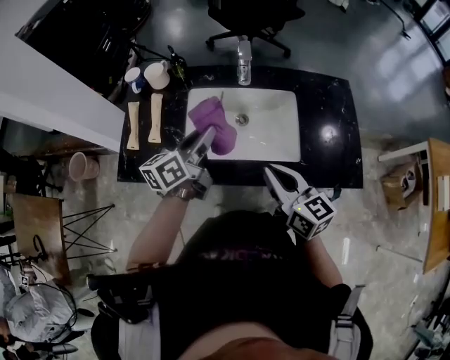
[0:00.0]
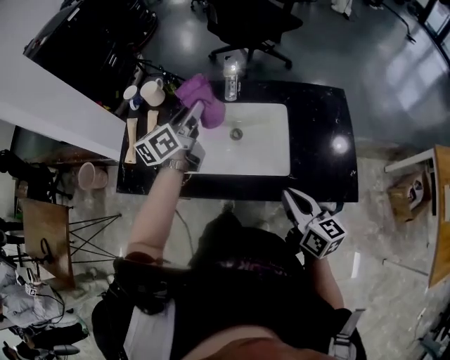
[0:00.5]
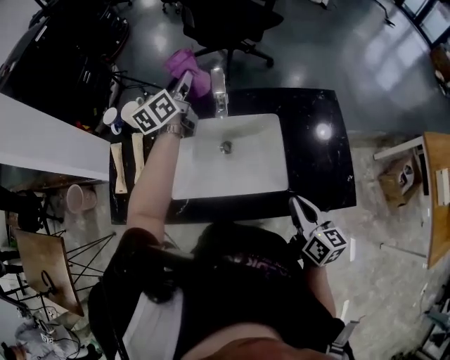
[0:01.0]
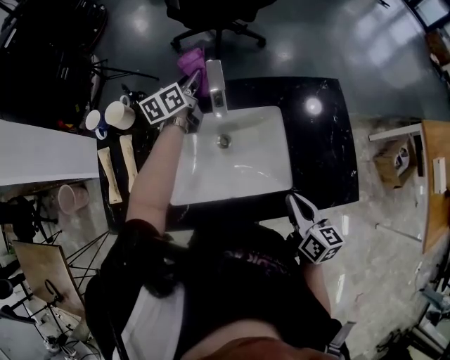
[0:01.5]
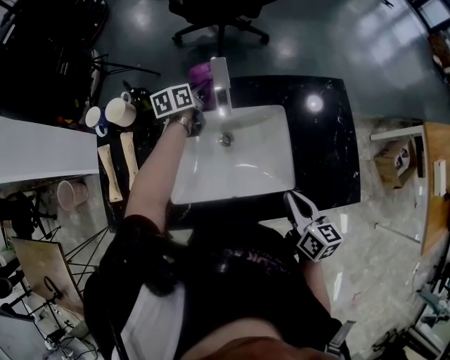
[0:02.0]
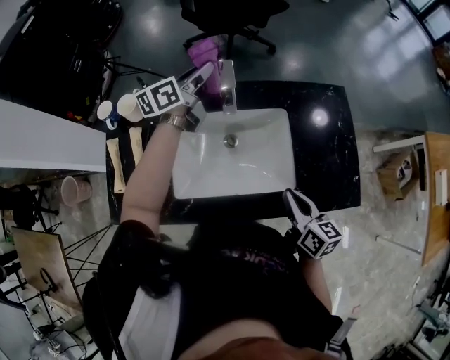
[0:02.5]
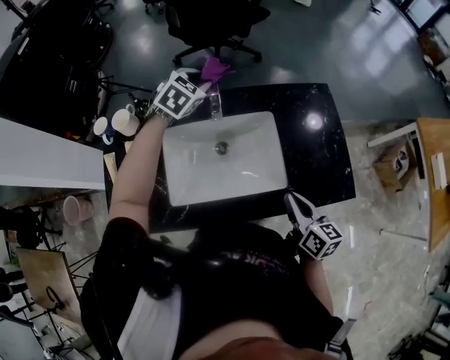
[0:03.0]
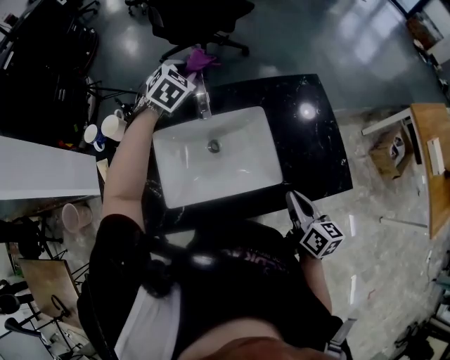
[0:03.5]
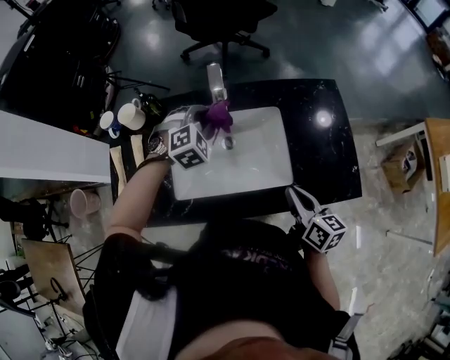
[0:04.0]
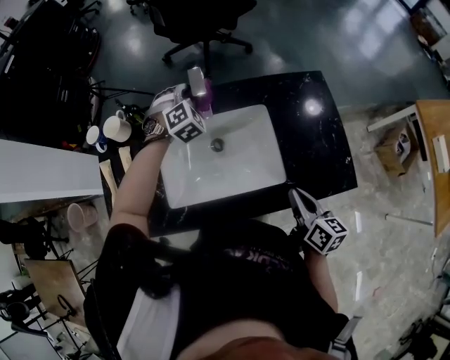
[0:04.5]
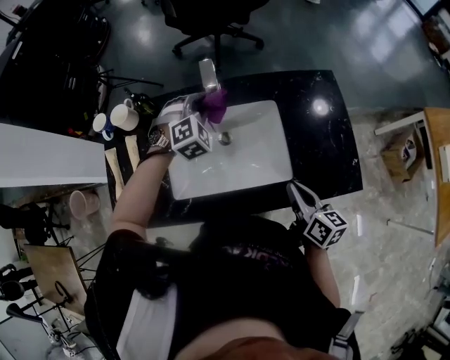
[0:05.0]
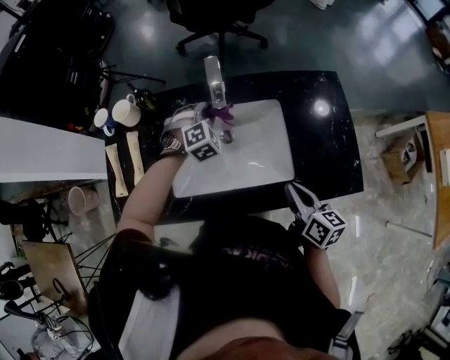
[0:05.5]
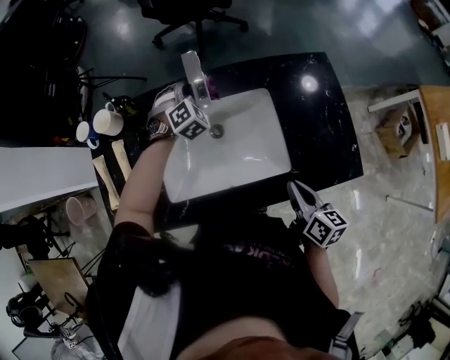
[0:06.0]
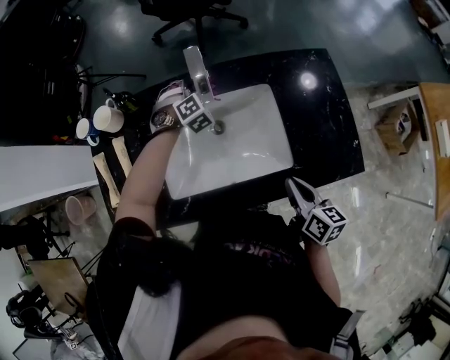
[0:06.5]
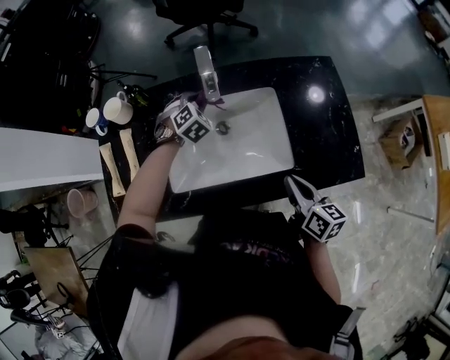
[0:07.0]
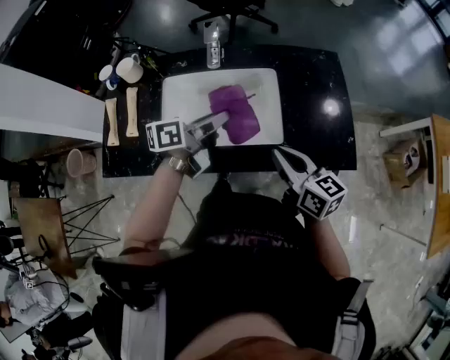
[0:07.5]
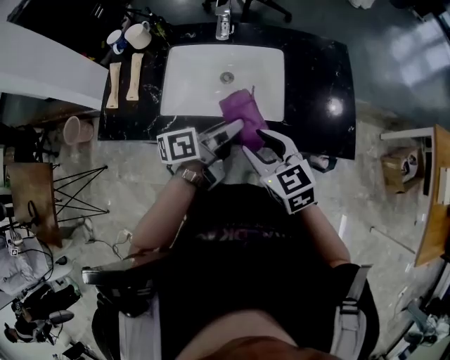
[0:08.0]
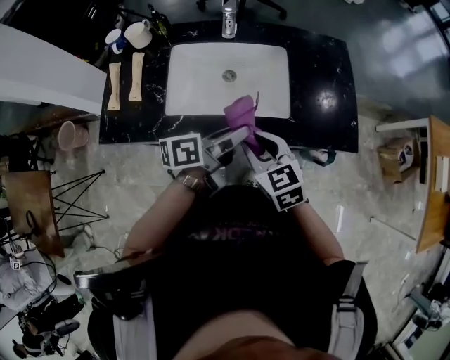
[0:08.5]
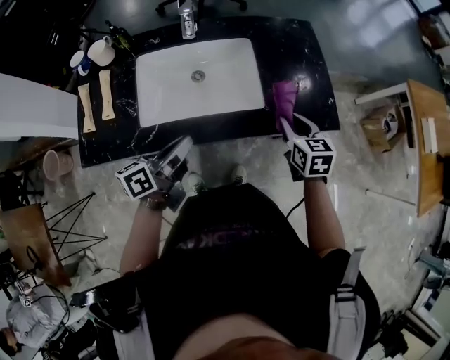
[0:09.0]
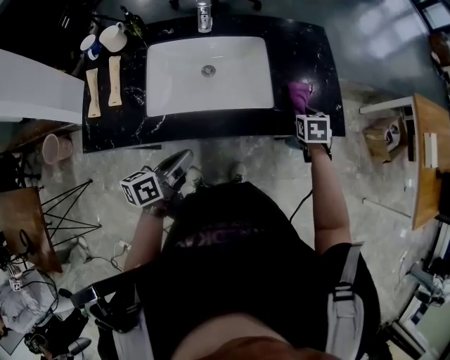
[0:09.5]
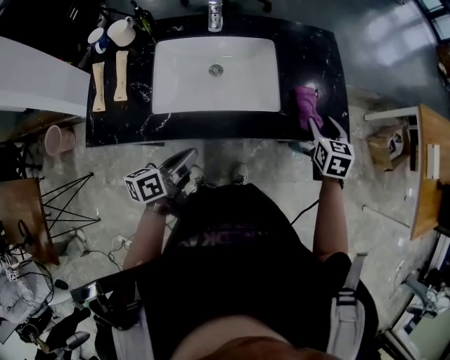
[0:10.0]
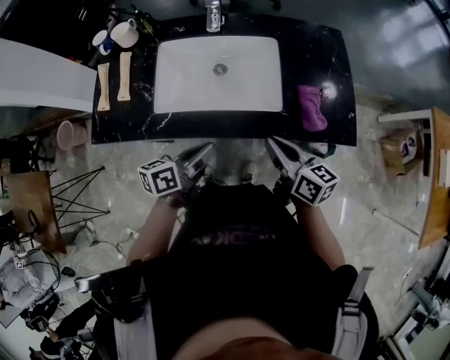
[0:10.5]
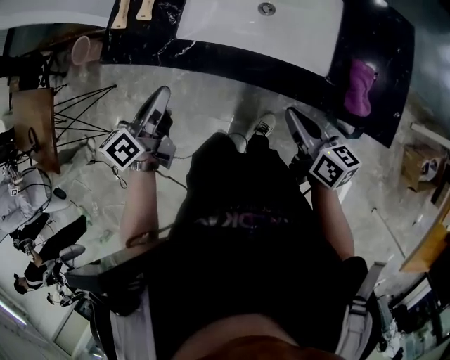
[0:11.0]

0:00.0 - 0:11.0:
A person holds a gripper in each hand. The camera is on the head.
0:00.0 - 0:02.0: The right gripper travels to the right, downward and forward by about 15 cm, and rotates approximately 30 degrees. Meanwhile the left gripper travels forward and downward by some 35 cm, and swivels some 20 degrees.
0:02.0 - 0:03.5: The left gripper goes approximately 15 cm upward, and rotates around the line of its fingers by roughly 70 degrees, clockwise from behind, while the right gripper travels to the right by approximately 5 cm.
0:03.5 - 0:05.5: The left gripper swings forward and backward, roughly 15 cm each way, with 2 reversals, and rotates approximately 20 degrees.
0:05.5 - 0:07.5: The right gripper moves upward, about 5 cm, and changes its angle by some 20 degrees; the left gripper moves backward and upward, some 20 cm, and twists roughly 100 degrees counterclockwise, seen from behind.
0:07.5 - 0:09.0: The left gripper moves backward, roughly 15 cm; the right gripper travels to the right and downward by about 10 cm, swivels about 40 degrees, and opens up.
0:09.0 - 0:11.0: The right gripper goes up and down, roughly 10 cm each way, reversing 2 times, changes its angle by about 50 degrees, and closes up. Meanwhile the left gripper moves approximately 15 cm, and swivels about 40 degrees.

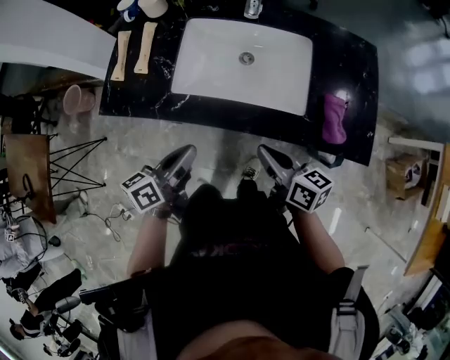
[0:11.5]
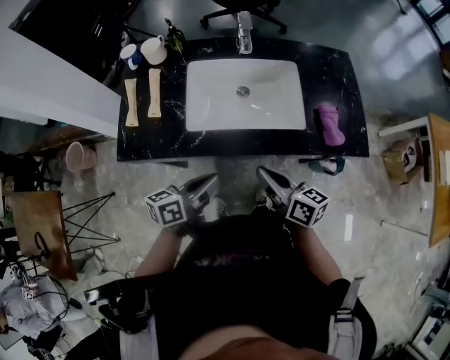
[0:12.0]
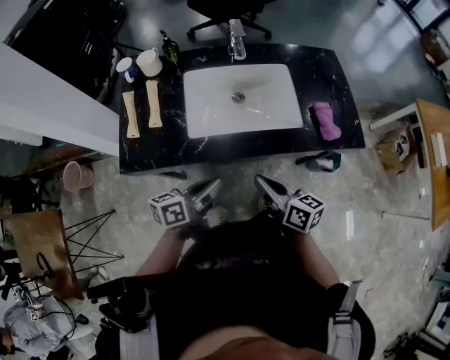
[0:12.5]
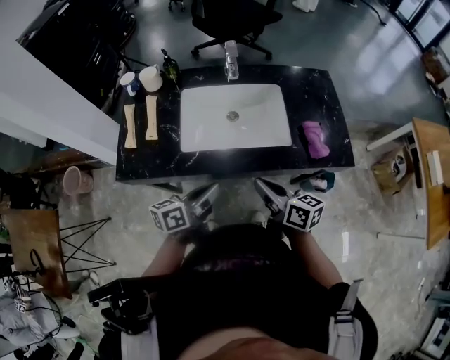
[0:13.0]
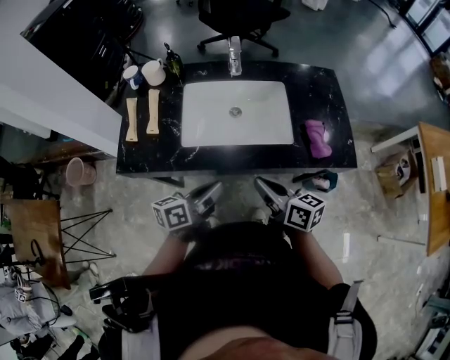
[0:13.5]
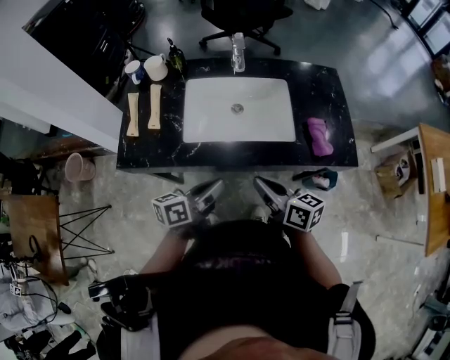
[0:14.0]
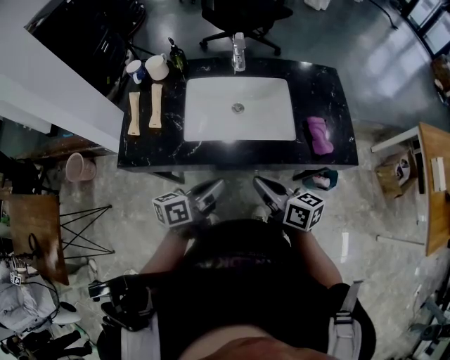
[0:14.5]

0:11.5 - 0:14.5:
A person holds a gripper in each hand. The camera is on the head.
0:11.5 - 0:13.0: The right gripper heads upward, covering some 5 cm.
0:13.0 - 0:14.5: The grippers stay close to where they were, moving slightly.

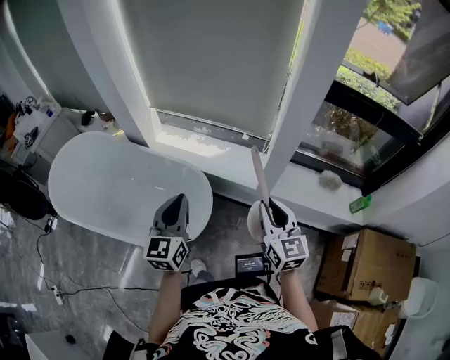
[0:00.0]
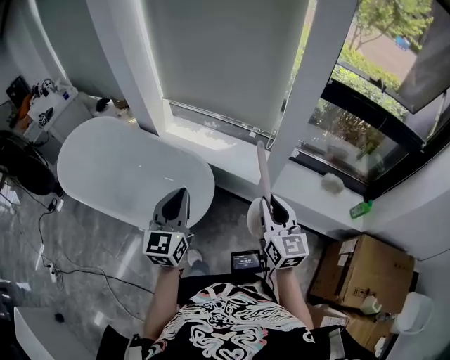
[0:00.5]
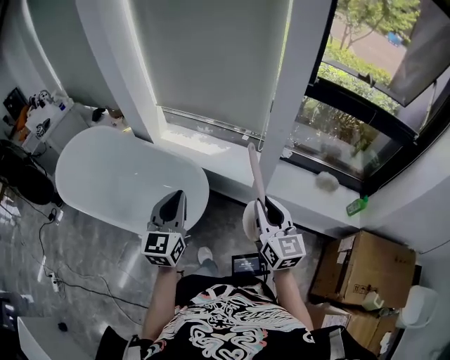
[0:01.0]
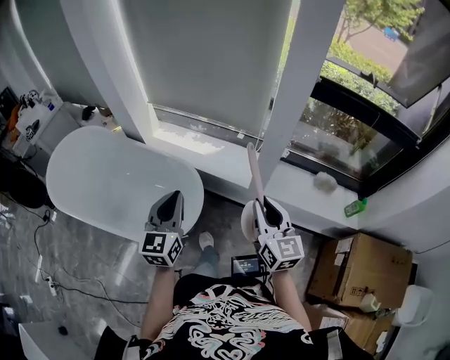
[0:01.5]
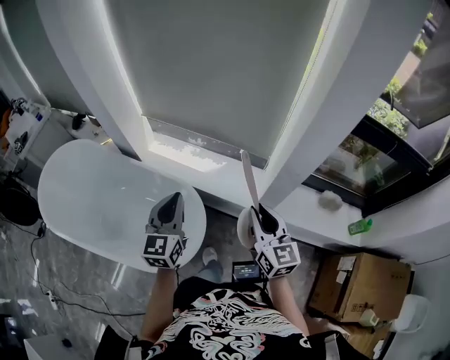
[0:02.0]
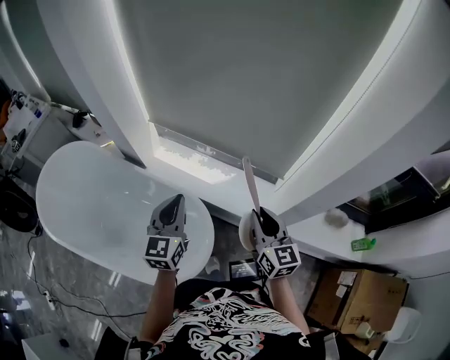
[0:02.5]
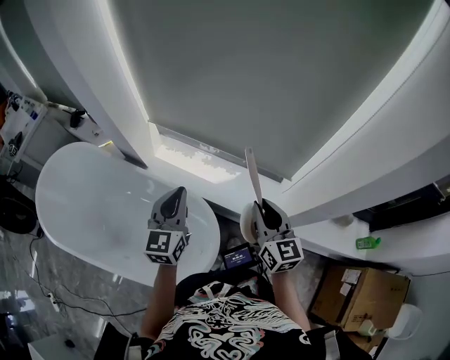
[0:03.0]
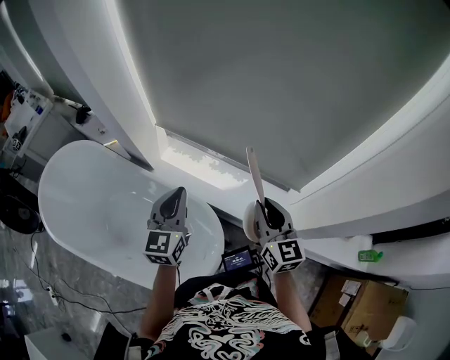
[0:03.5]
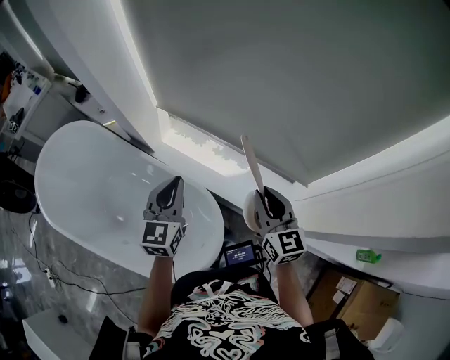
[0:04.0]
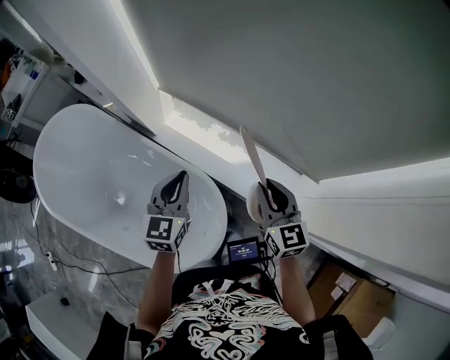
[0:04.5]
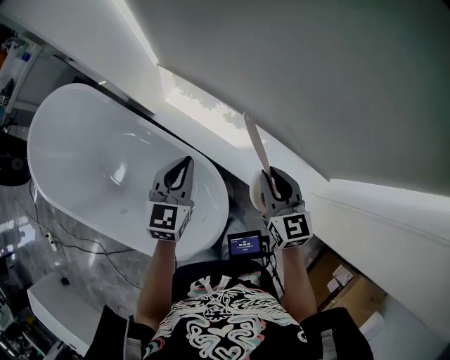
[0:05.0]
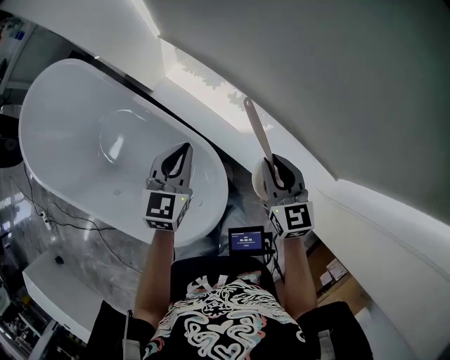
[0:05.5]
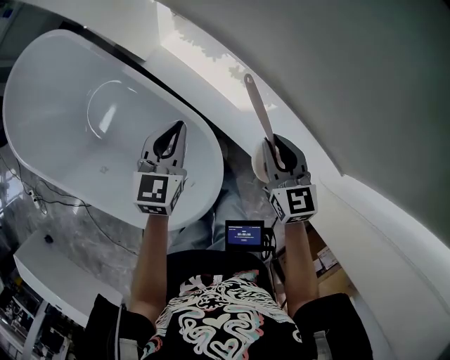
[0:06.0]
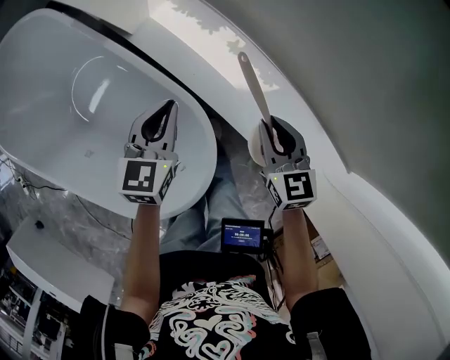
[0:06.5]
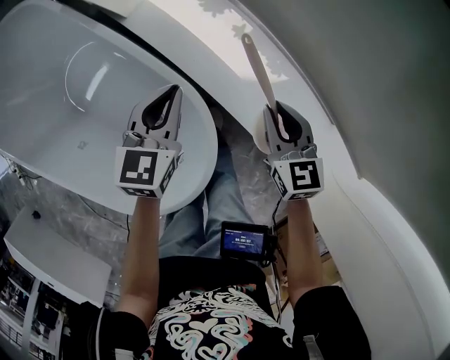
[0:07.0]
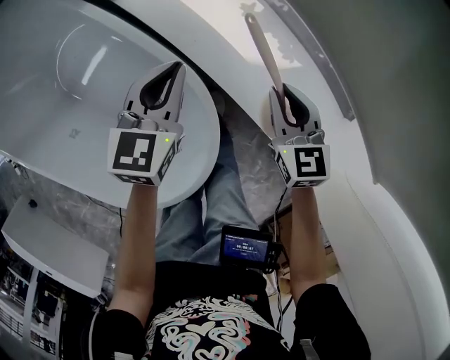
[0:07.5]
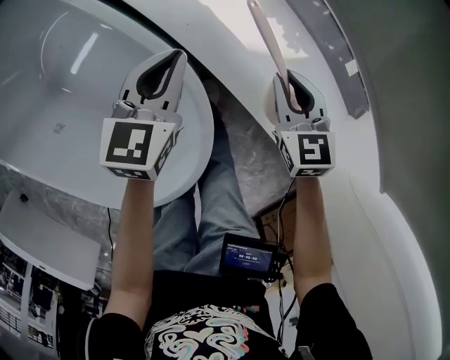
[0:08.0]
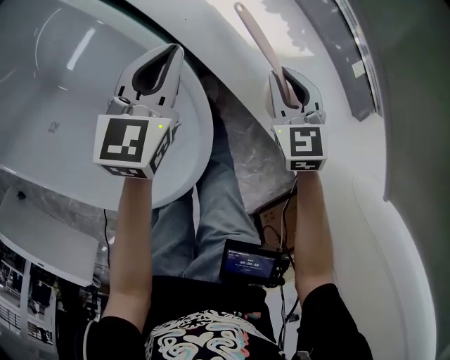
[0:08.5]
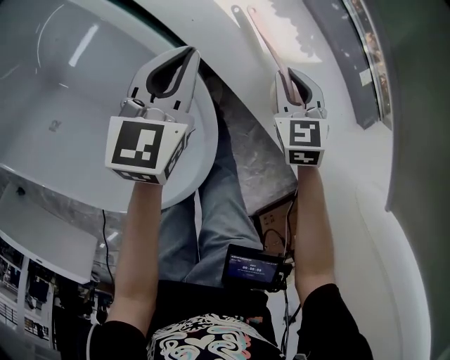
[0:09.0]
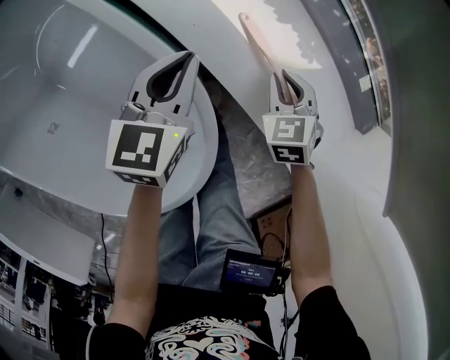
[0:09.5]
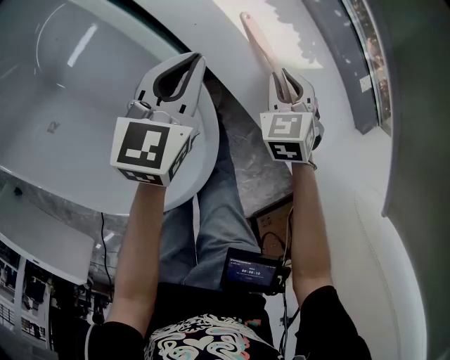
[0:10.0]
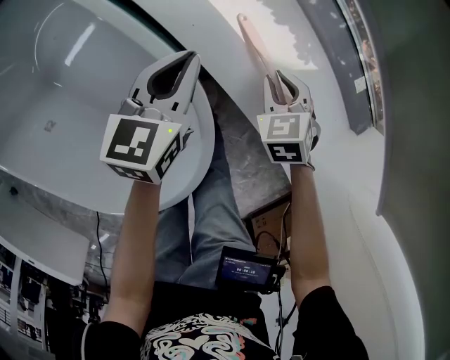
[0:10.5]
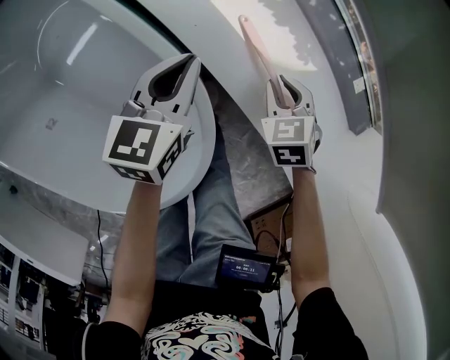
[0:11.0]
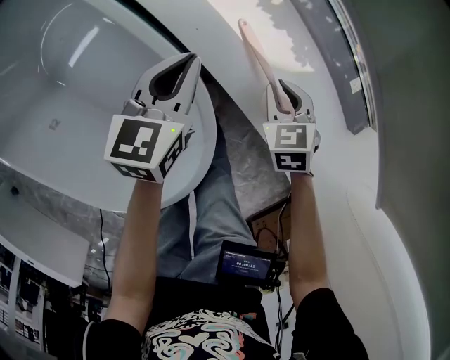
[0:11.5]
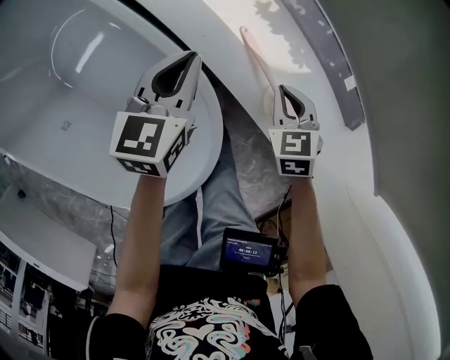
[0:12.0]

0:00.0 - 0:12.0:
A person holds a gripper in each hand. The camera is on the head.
0:00.0 - 0:02.0: The grippers both shift forward by approximately 15 cm.
0:02.0 - 0:04.0: The two grippers go approximately 25 cm forward and to the left.
0:04.0 - 0:06.0: Both grippers move downward and forward, some 25 cm. The right gripper rotates about 20 degrees.
0:06.0 - 0:08.0: Both grippers travel together downward, approximately 20 cm.
0:08.0 - 0:10.0: The right gripper goes roughly 10 cm downward, and rotates roughly 30 degrees.
0:10.0 - 0:12.0: Both grippers move upward, about 10 cm.
